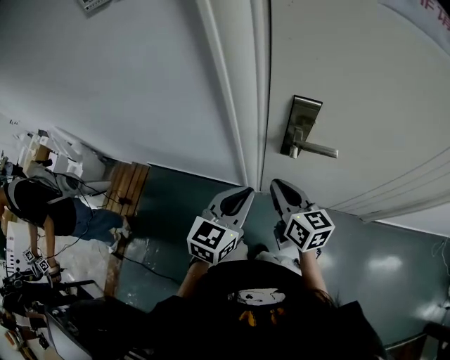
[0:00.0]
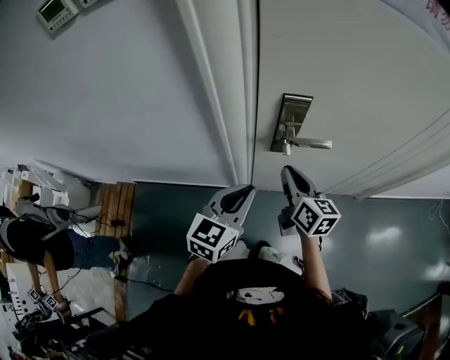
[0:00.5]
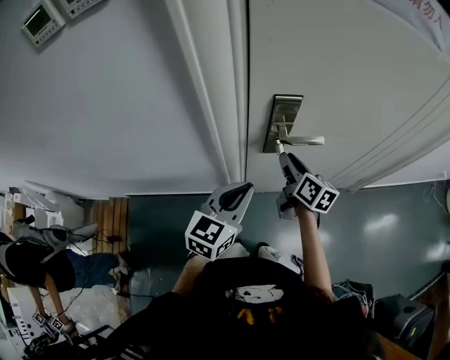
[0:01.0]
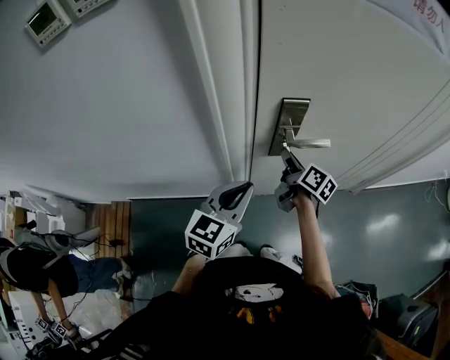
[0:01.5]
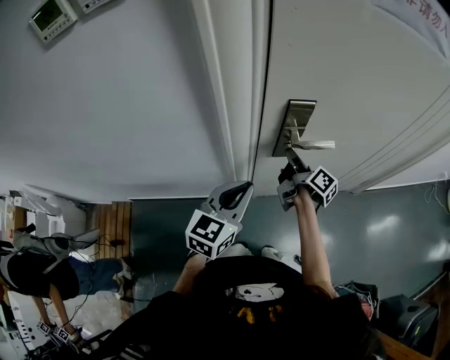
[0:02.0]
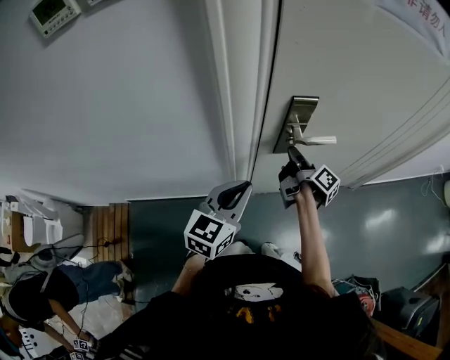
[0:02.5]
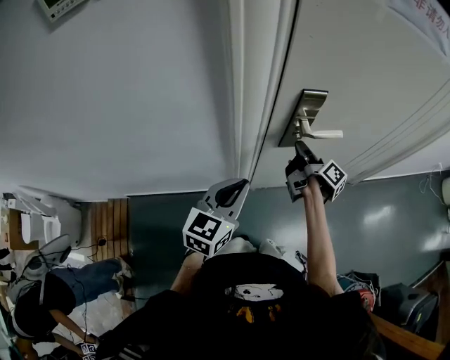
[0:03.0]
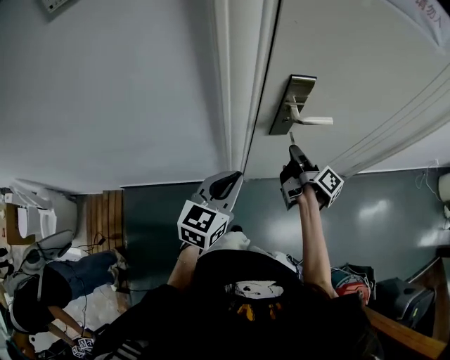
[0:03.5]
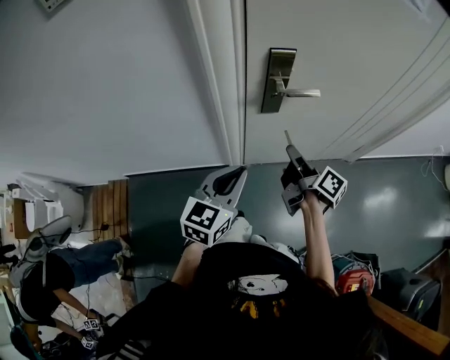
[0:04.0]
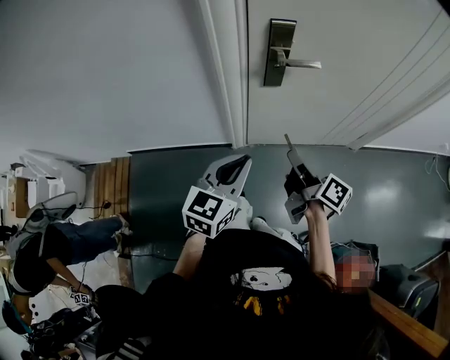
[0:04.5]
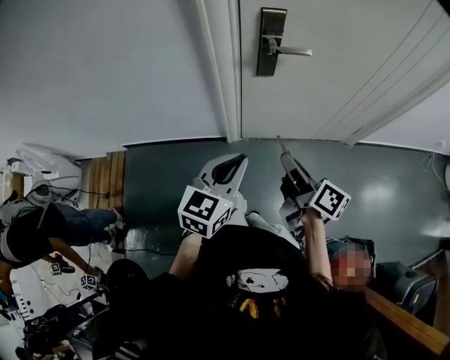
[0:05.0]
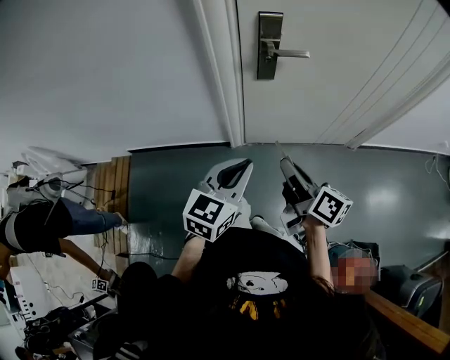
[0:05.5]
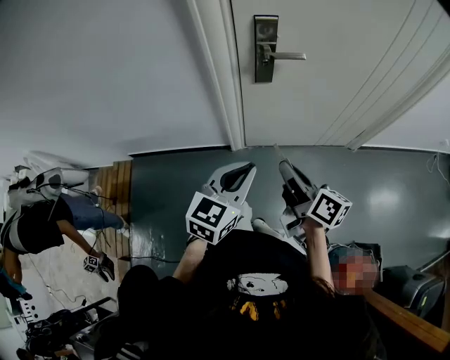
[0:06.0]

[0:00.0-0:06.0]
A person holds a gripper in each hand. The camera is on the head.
0.0 to 2.0 s: The right gripper moves roughly 15 cm, and twists approximately 50 degrees clockwise, seen from behind. The left gripper ends up some 5 cm from where it was.
2.0 to 4.0 s: The right gripper is displaced backward by roughly 15 cm. The left gripper travels backward by roughly 10 cm.
4.0 to 6.0 s: The left gripper heads backward and to the right, covering some 15 cm. The right gripper heads backward, covering roughly 20 cm, and changes its angle by about 30 degrees.

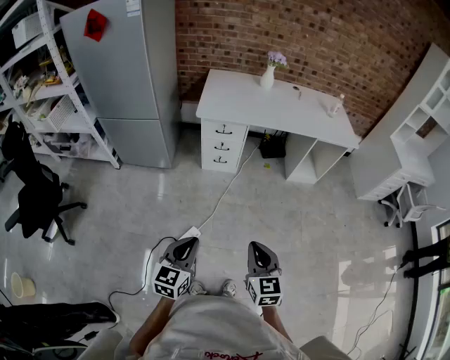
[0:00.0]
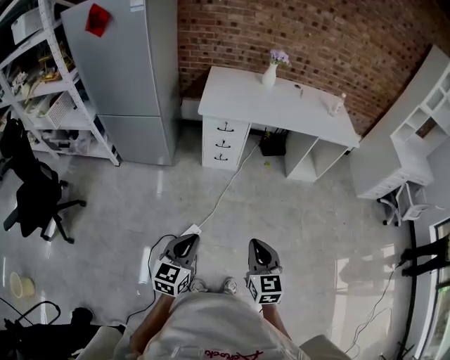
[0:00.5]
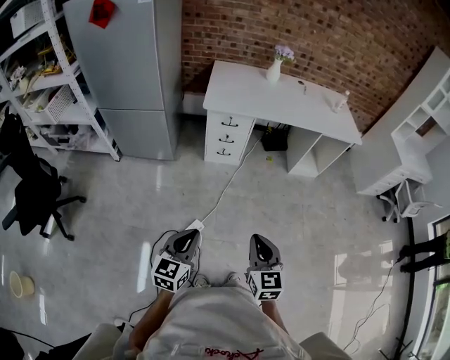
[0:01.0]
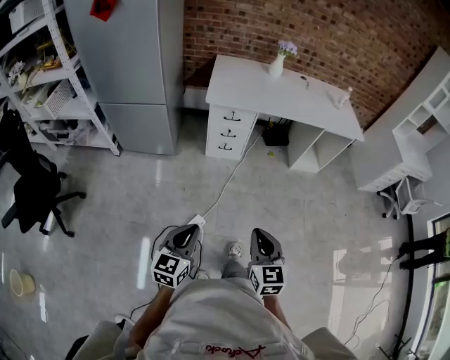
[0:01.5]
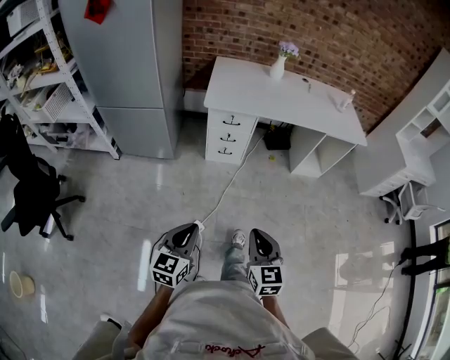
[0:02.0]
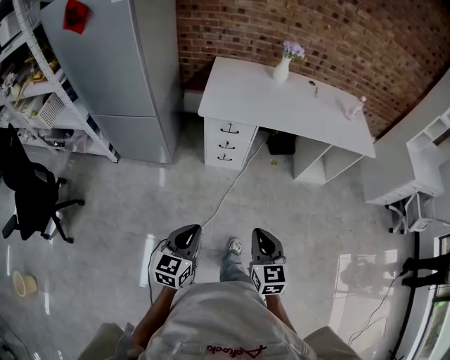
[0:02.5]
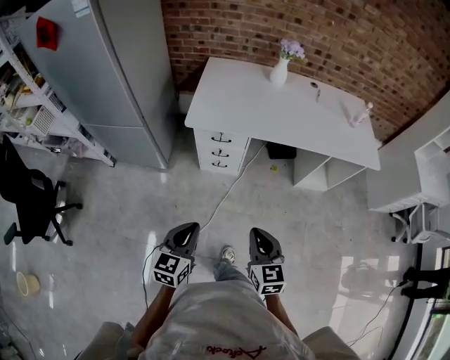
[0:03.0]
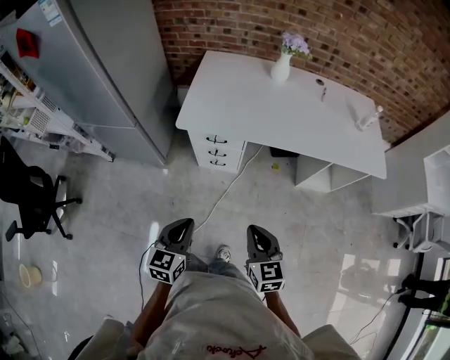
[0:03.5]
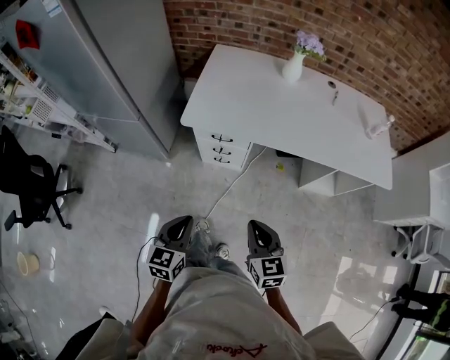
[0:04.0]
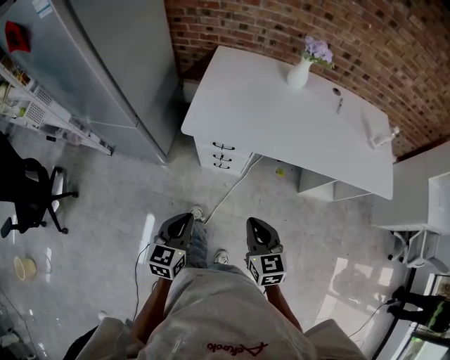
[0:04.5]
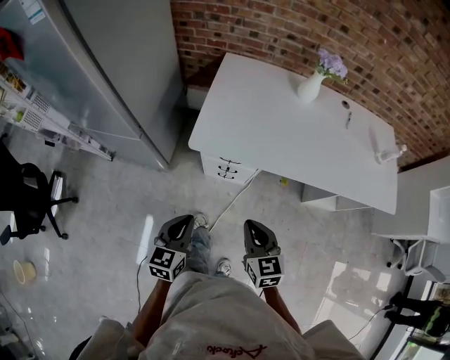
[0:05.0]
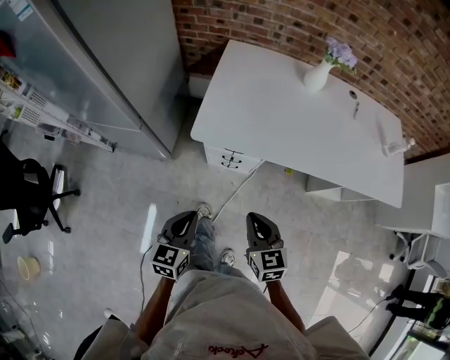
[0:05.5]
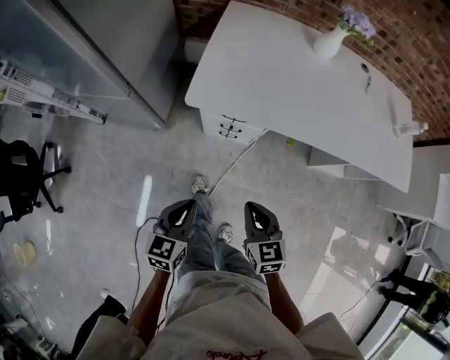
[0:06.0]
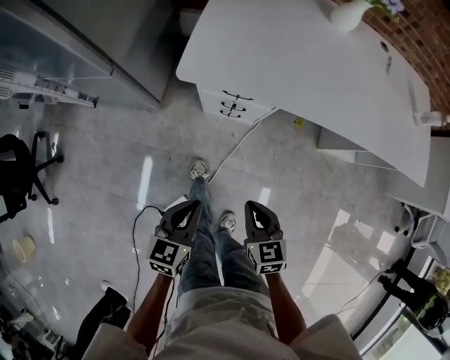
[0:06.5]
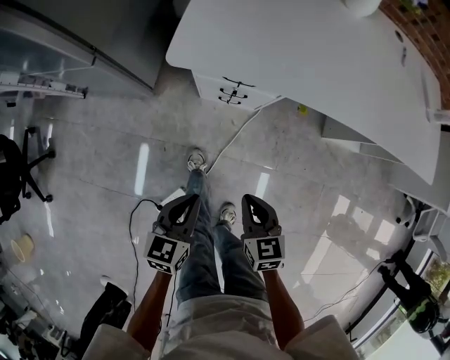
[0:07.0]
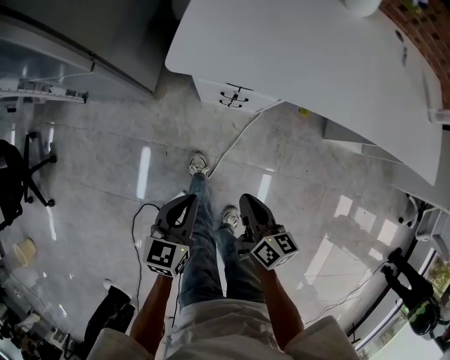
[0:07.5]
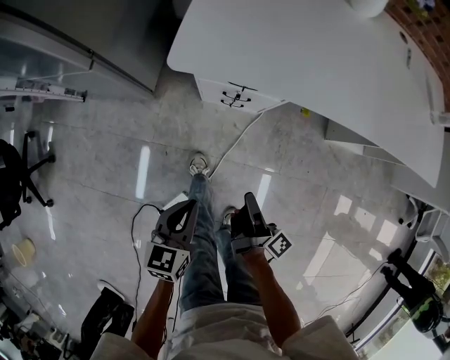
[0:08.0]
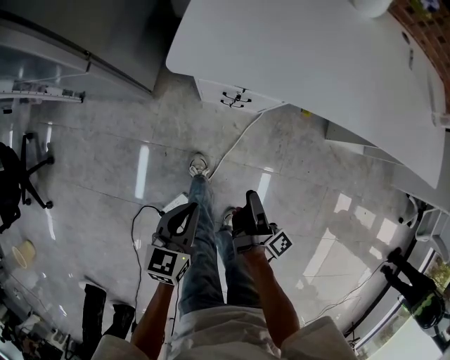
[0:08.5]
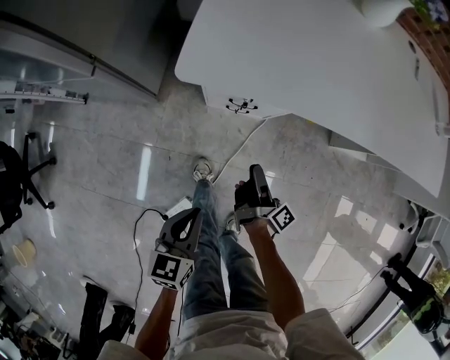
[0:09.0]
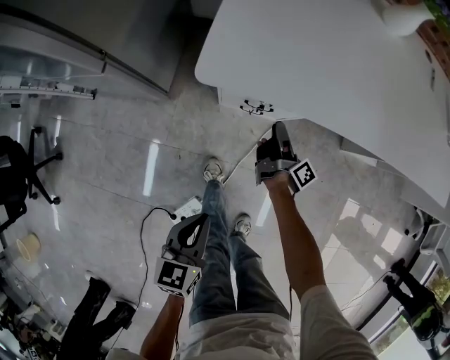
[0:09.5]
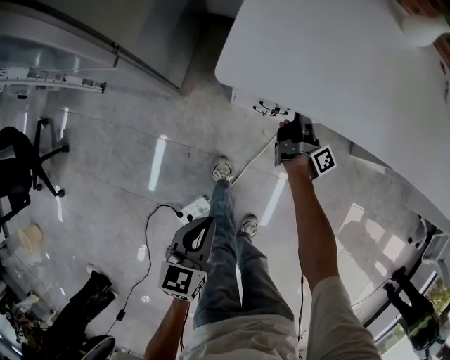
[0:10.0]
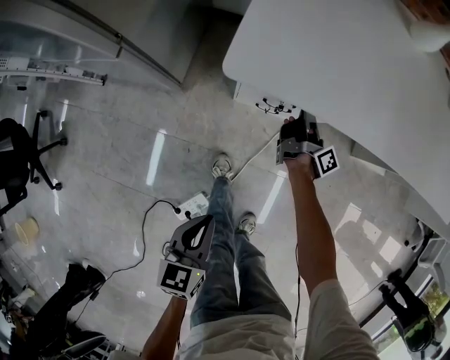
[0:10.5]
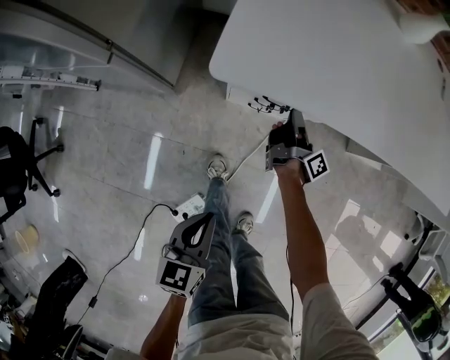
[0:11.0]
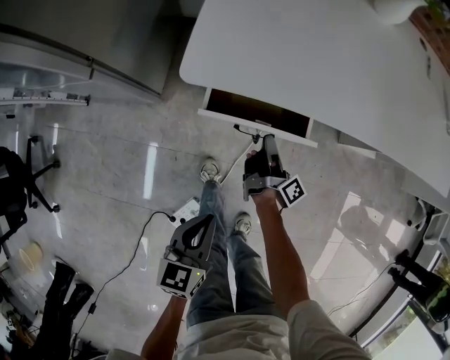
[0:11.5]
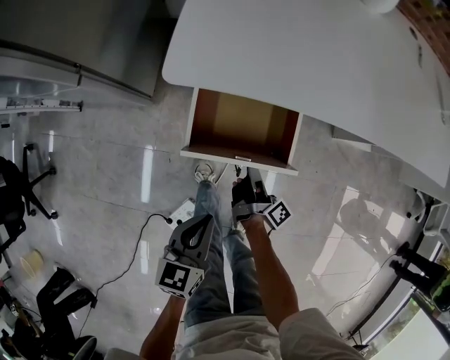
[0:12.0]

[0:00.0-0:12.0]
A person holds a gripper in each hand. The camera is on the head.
0.0 to 2.0 s: The grippers both shift to the left by about 5 cm.
2.0 to 4.0 s: The right gripper travels forward by some 35 cm; the left gripper travels forward and to the right by about 35 cm.
4.0 to 6.0 s: The two grippers go roughly 15 cm forward, downward and to the left.
6.0 to 8.0 s: Both grippers move downward, roughly 15 cm. The right gripper twists about 90 degrees clockwise, seen from behind.
8.0 to 10.0 s: The left gripper heads to the left, covering some 5 cm; the right gripper heads forward, covering approximately 30 cm, and opens its fingers.
10.0 to 12.0 s: The right gripper is displaced backward by approximately 20 cm, while the left gripper goes roughly 5 cm to the right.

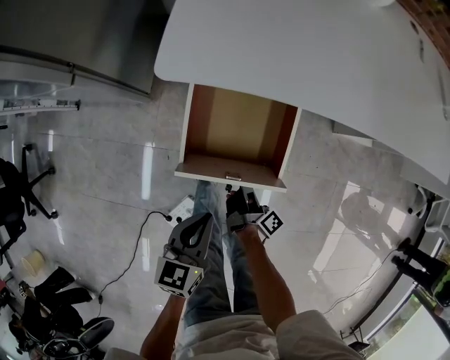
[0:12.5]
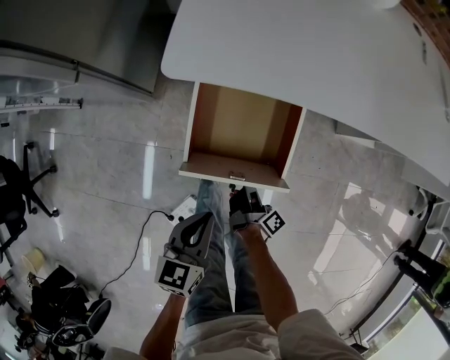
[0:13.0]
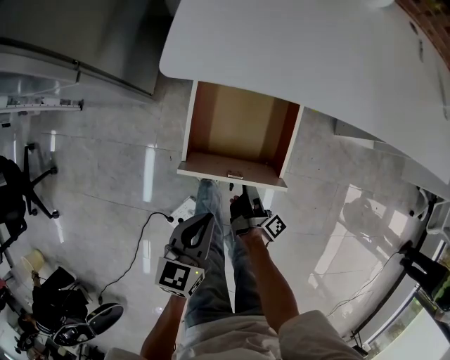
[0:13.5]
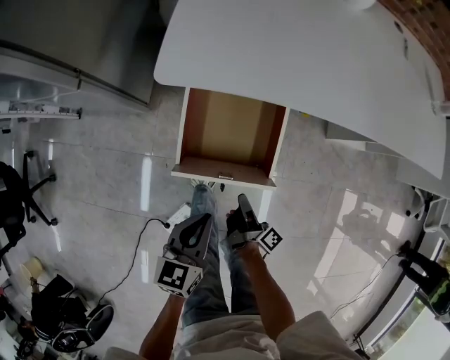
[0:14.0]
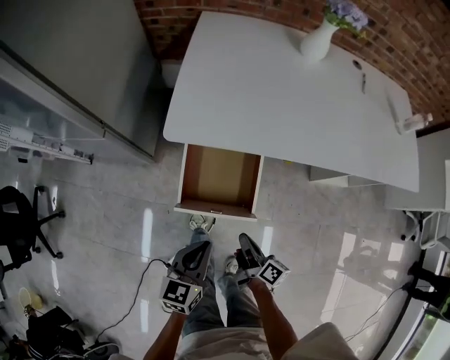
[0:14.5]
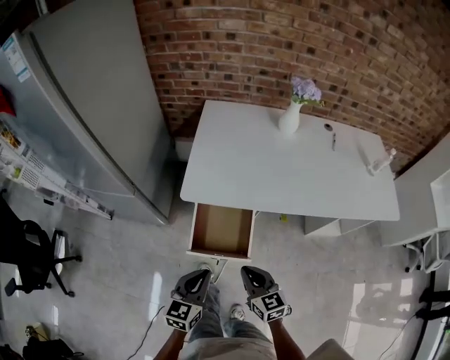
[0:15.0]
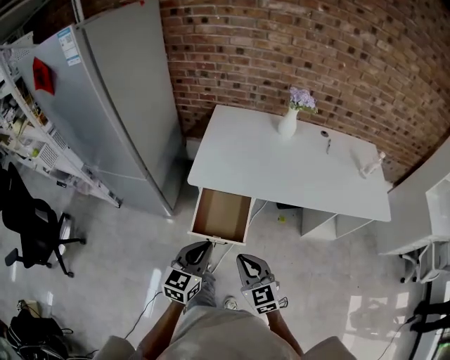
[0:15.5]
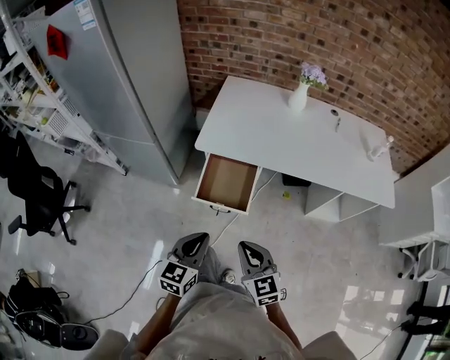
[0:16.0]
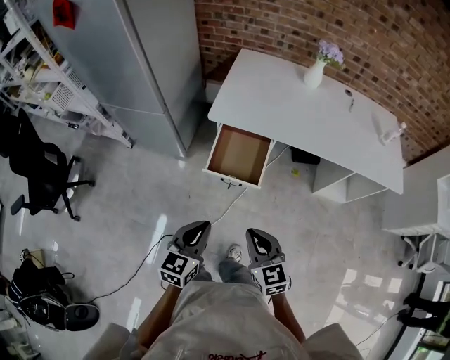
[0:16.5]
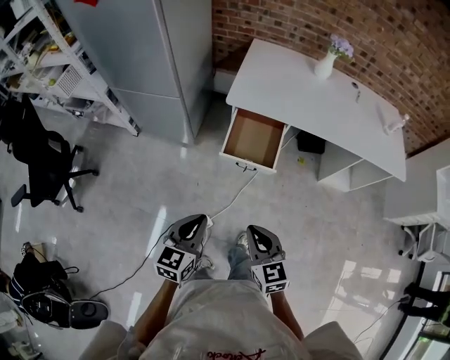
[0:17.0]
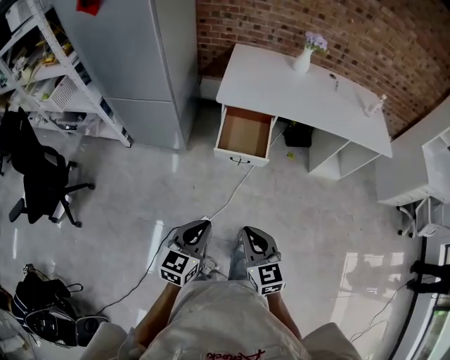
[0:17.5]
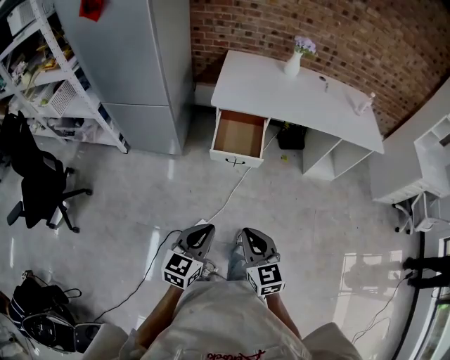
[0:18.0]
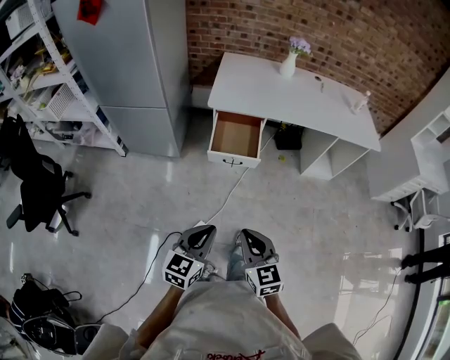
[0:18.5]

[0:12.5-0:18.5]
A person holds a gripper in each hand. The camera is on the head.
12.5 to 14.5 s: The left gripper goes approximately 10 cm upward, while the right gripper is displaced upward, backward and to the right by roughly 15 cm, turns by about 30 degrees, and opens, then closes again.
14.5 to 16.5 s: The left gripper goes roughly 25 cm backward and upward, while the right gripper travels upward and backward by roughly 35 cm, and rotates around the line of its fingers by approximately 70 degrees, counterclockwise from behind.
16.5 to 18.5 s: The left gripper shifts some 20 cm backward. The right gripper moves backward and to the left, about 25 cm.

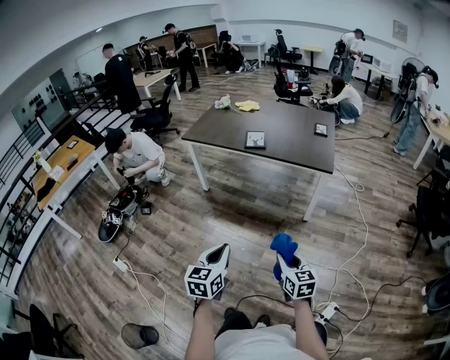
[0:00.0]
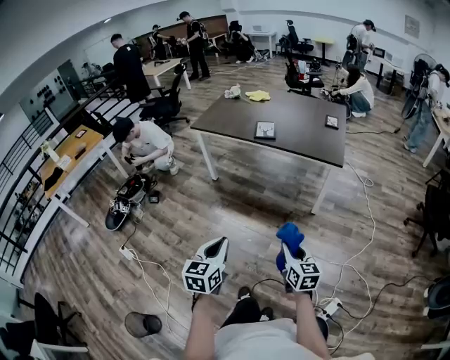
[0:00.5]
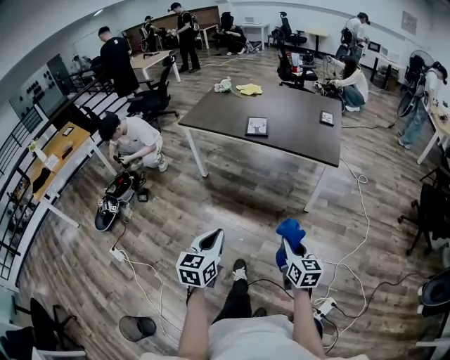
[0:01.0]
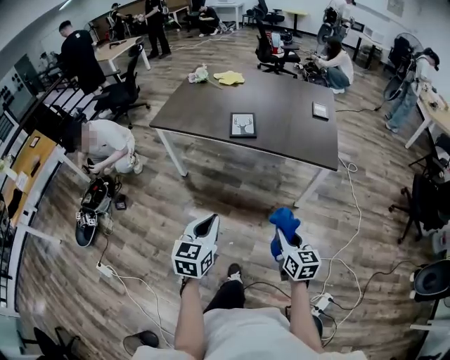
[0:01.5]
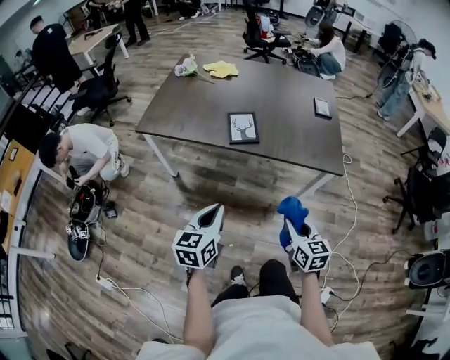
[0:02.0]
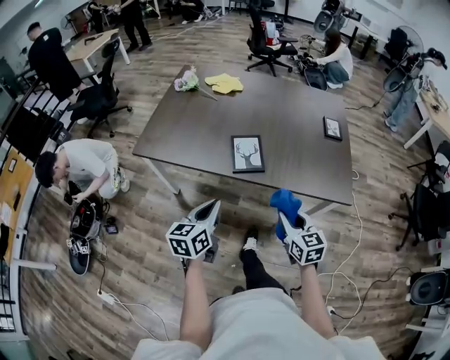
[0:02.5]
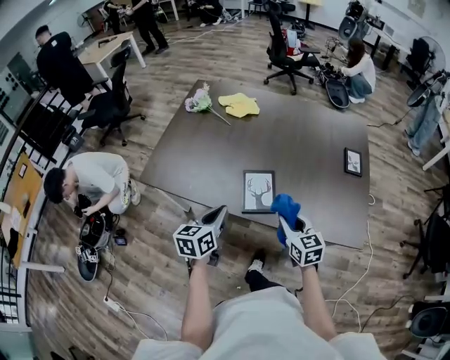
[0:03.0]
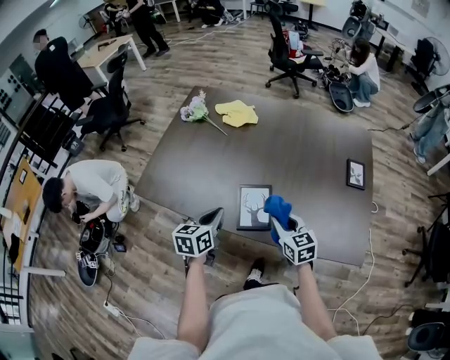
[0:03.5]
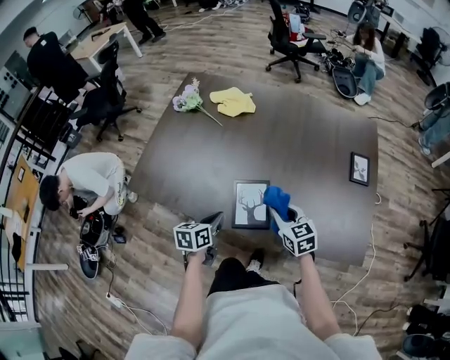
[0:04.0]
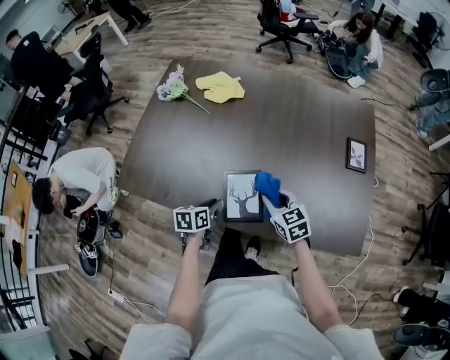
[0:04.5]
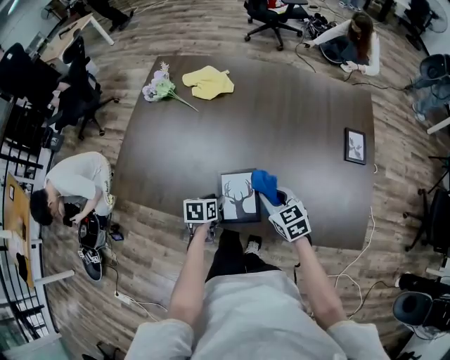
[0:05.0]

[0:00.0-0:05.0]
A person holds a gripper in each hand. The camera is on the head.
0.0 to 2.5 s: The two grippers travel together, forward, roughly 60 cm.
2.5 to 5.0 s: The right gripper travels forward by approximately 35 cm, and swivels about 20 degrees. The left gripper moves forward and downward, roughly 40 cm, tilts its fingers some 40 degrees downward, and opens.
